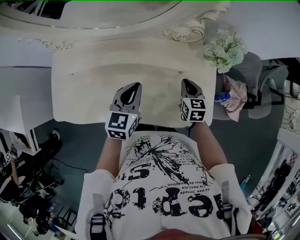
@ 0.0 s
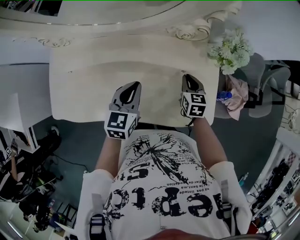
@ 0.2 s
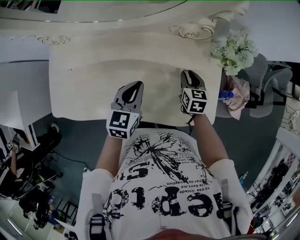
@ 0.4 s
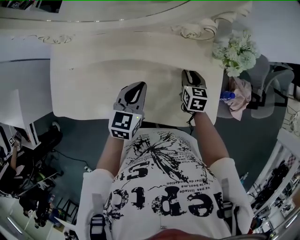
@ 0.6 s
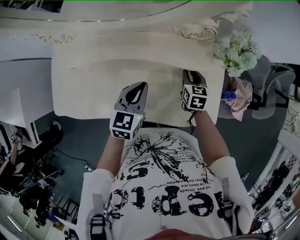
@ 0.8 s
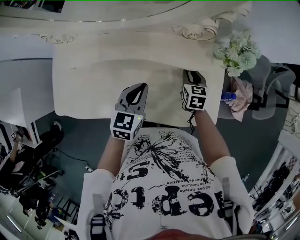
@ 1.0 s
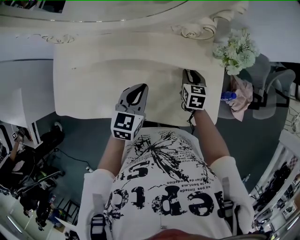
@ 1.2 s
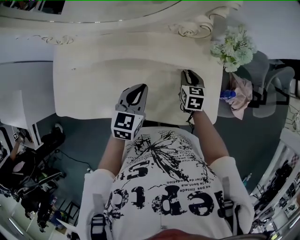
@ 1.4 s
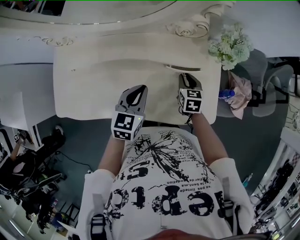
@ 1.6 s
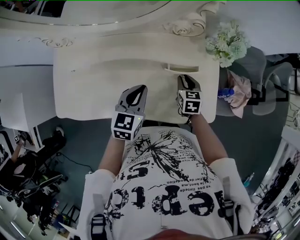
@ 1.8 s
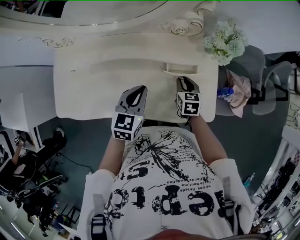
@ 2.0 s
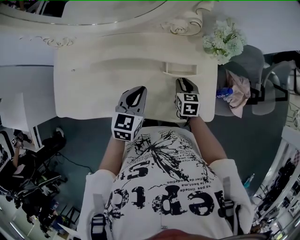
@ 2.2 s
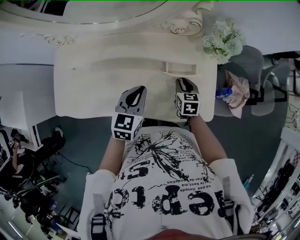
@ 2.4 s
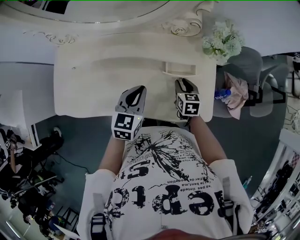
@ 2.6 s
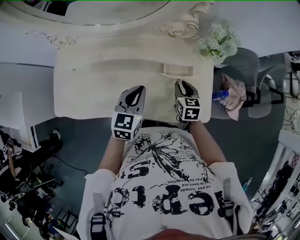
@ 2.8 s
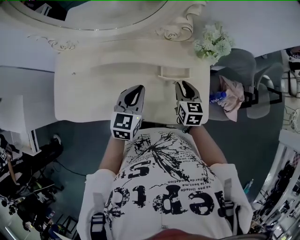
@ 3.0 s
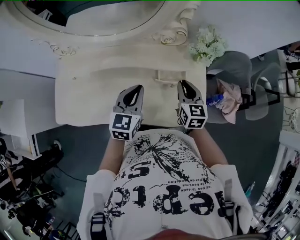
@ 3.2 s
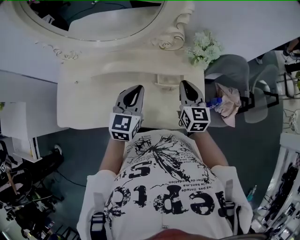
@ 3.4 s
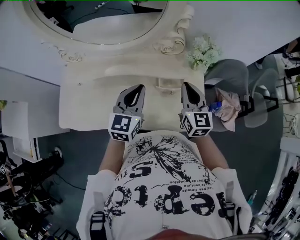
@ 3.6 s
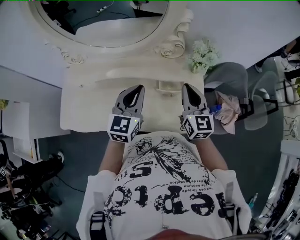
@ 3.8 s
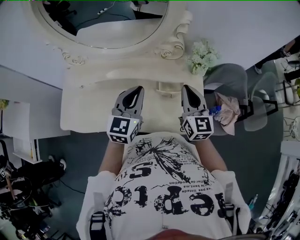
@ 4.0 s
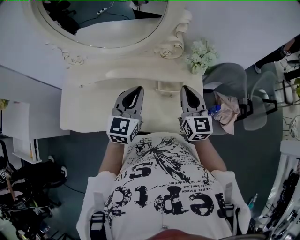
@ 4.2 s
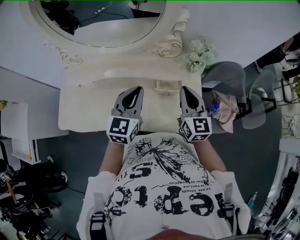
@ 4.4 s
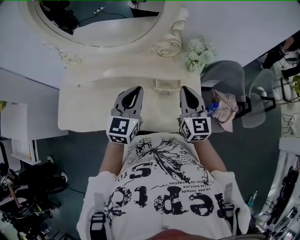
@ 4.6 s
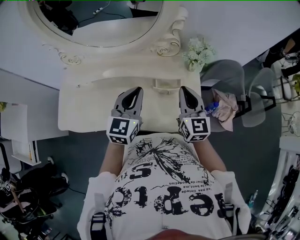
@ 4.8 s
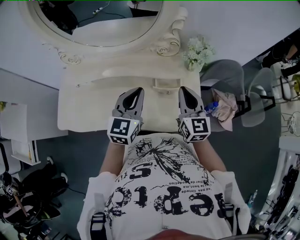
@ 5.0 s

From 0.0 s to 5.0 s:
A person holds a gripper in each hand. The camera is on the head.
From 0.0 s to 1.6 s: The grippers make only small movements.
From 1.6 s to 3.4 s: The left gripper travels upward by approximately 10 cm, while the right gripper shifts approximately 20 cm upward, and turns by about 30 degrees.
From 3.4 s to 5.0 s: The right gripper heads upward, covering some 5 cm.

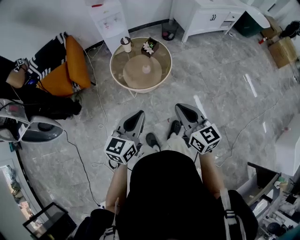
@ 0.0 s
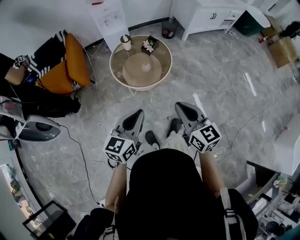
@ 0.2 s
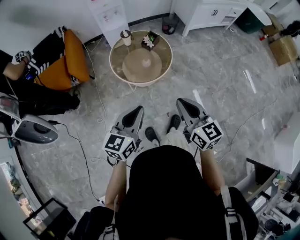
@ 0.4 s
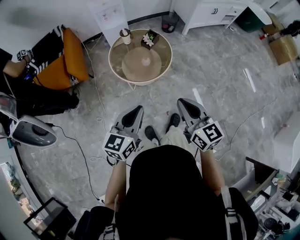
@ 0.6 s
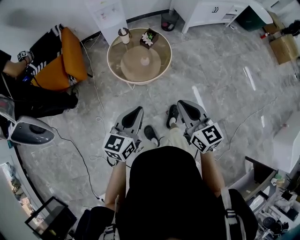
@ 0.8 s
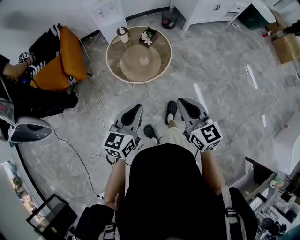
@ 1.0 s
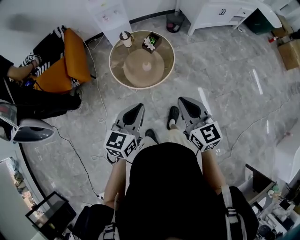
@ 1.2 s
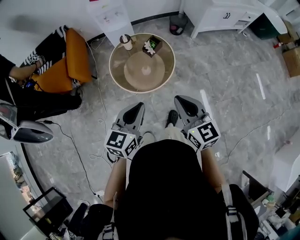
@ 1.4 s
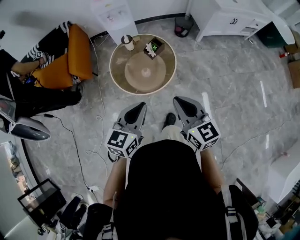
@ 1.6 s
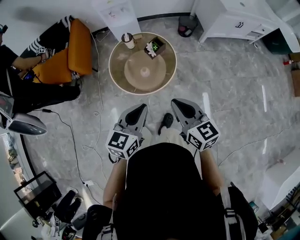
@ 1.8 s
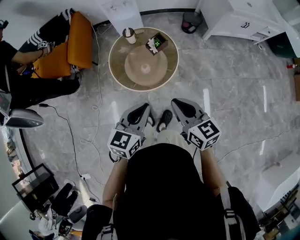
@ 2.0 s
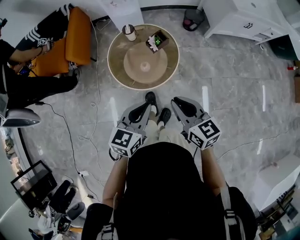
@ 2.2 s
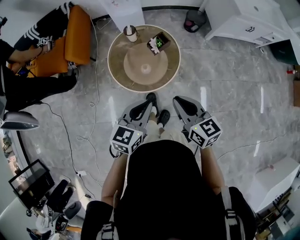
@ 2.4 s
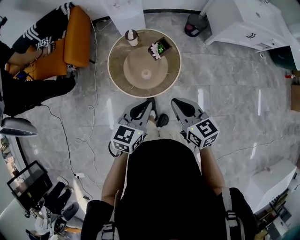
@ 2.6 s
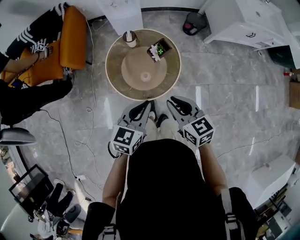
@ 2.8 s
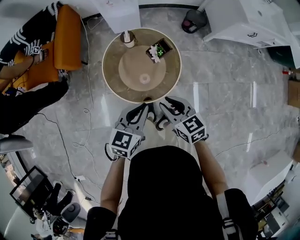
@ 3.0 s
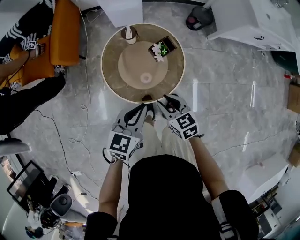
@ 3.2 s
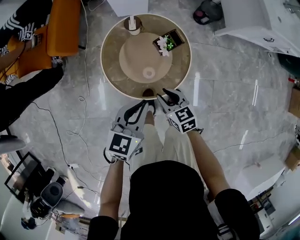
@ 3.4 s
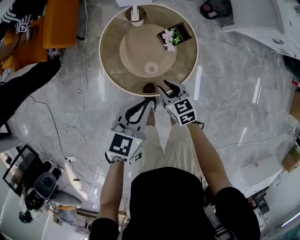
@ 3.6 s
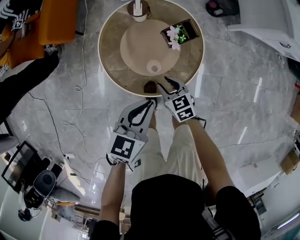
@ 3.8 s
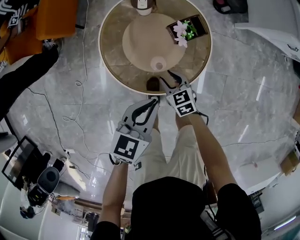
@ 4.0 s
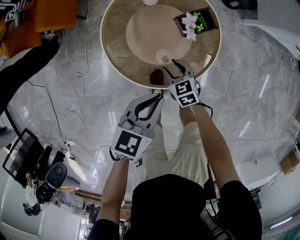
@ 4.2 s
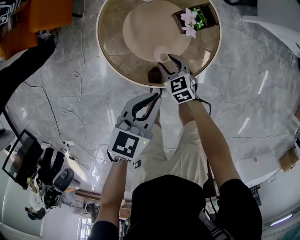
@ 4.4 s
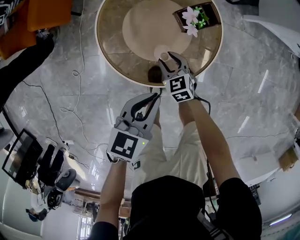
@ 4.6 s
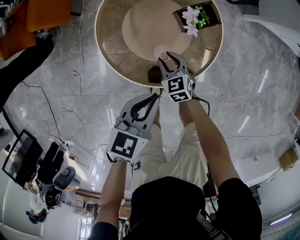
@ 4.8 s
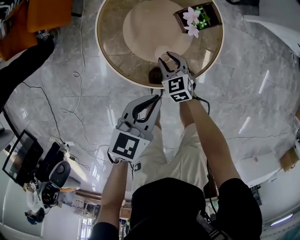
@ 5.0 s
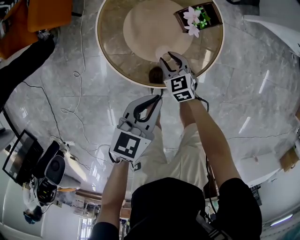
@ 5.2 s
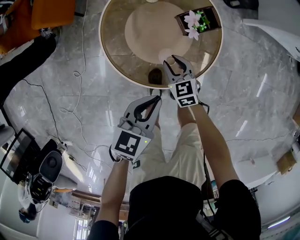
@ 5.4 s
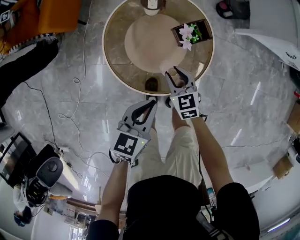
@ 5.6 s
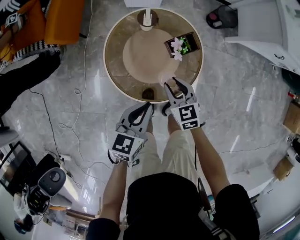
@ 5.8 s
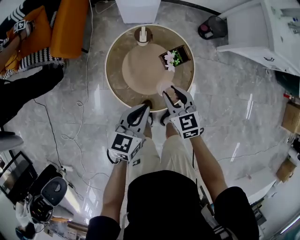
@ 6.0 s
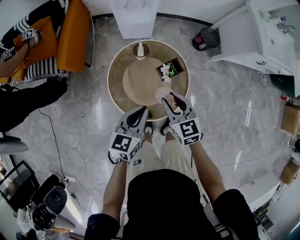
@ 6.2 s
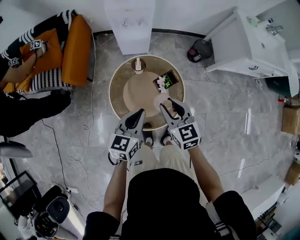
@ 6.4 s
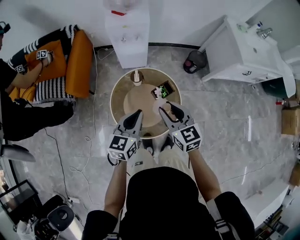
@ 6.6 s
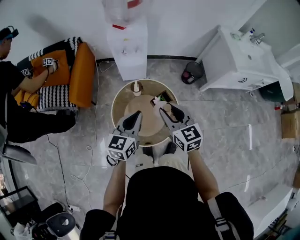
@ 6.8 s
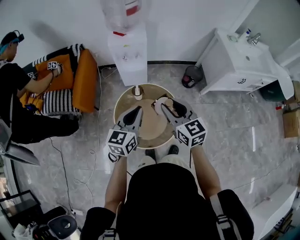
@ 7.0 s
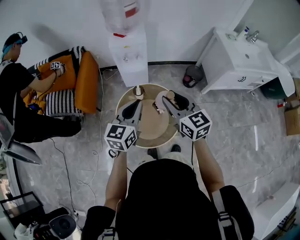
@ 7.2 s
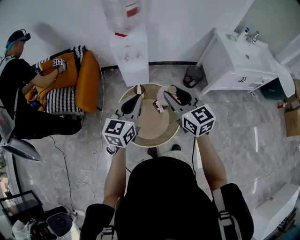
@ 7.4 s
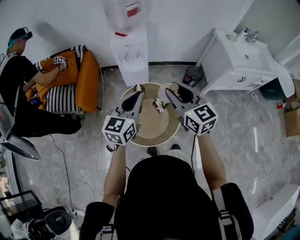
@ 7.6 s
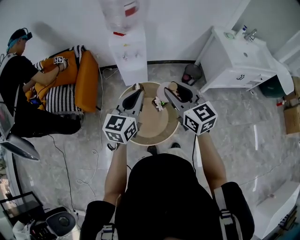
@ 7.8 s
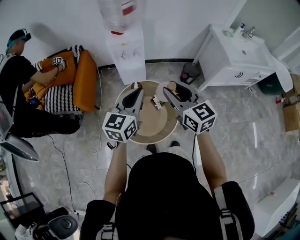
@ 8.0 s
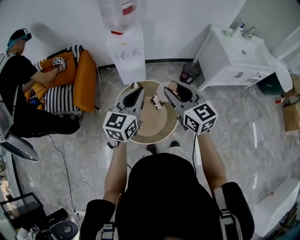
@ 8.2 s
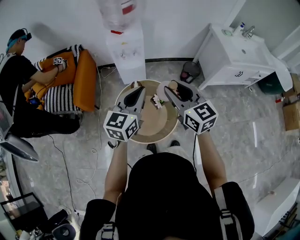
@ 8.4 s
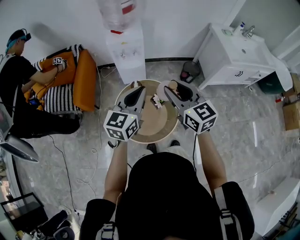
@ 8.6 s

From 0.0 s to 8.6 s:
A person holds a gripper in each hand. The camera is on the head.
From 0.0 s to 1.4 s: The left gripper travels forward and to the right by approximately 15 cm, while the right gripper travels forward by about 15 cm.
From 1.4 s to 2.8 s: The grippers both shift forward and downward by some 20 cm. The right gripper swivels approximately 30 degrees.
From 2.8 s to 4.4 s: The right gripper goes approximately 40 cm downward, rotates about 30 degrees, and opens up. Meanwhile the left gripper shifts approximately 25 cm downward.
From 4.4 s to 5.8 s: The right gripper is displaced upward by approximately 20 cm; the left gripper goes about 5 cm upward.
From 5.8 s to 7.2 s: The two grippers go approximately 35 cm upward. The left gripper changes its angle by some 30 degrees. The right gripper swivels roughly 30 degrees.
From 7.2 s to 8.6 s: The left gripper moves roughly 5 cm.

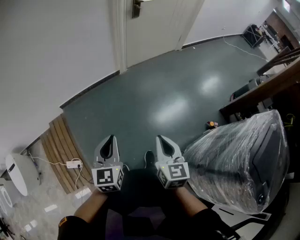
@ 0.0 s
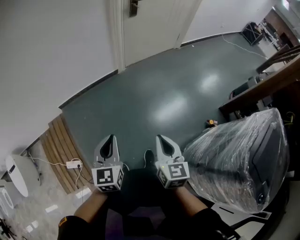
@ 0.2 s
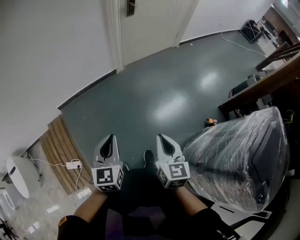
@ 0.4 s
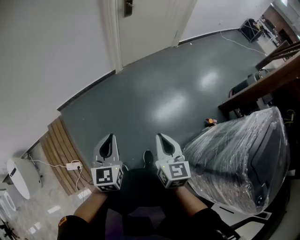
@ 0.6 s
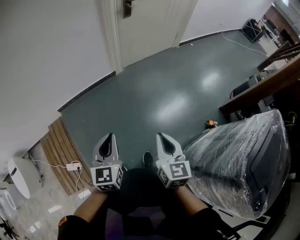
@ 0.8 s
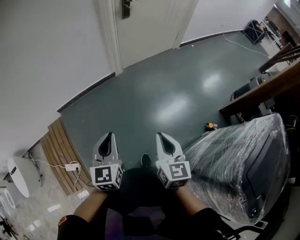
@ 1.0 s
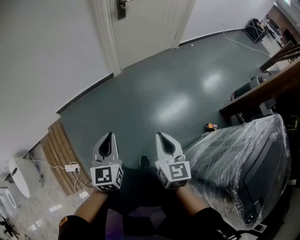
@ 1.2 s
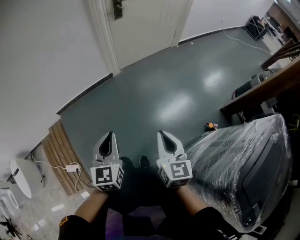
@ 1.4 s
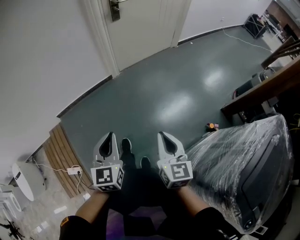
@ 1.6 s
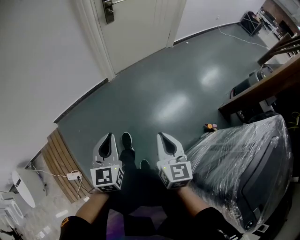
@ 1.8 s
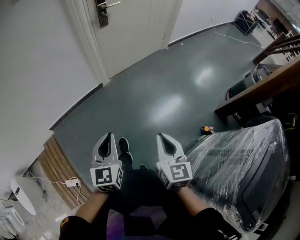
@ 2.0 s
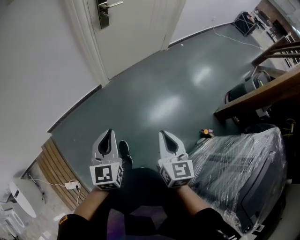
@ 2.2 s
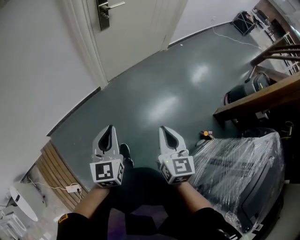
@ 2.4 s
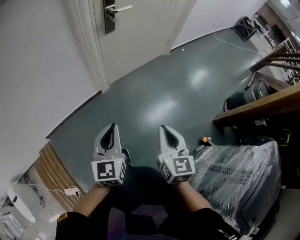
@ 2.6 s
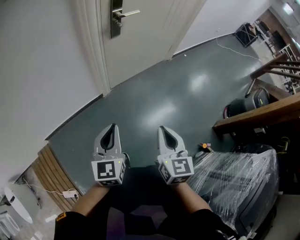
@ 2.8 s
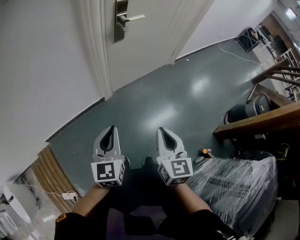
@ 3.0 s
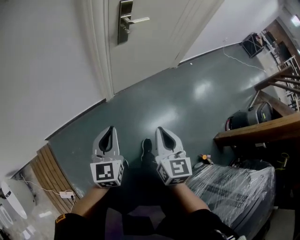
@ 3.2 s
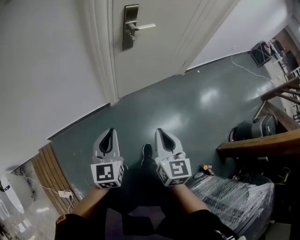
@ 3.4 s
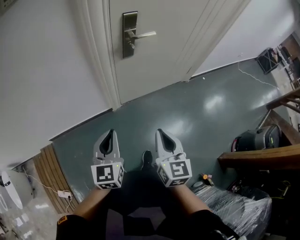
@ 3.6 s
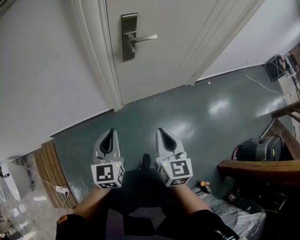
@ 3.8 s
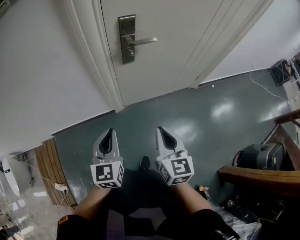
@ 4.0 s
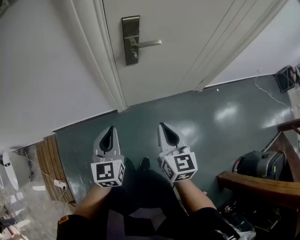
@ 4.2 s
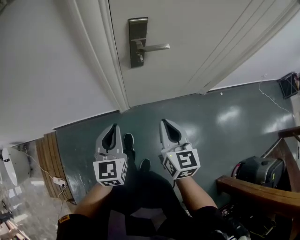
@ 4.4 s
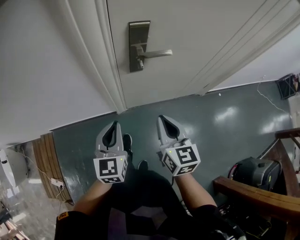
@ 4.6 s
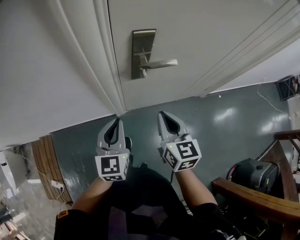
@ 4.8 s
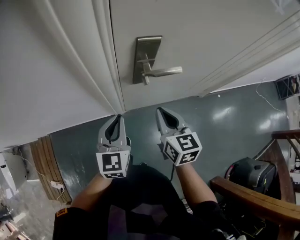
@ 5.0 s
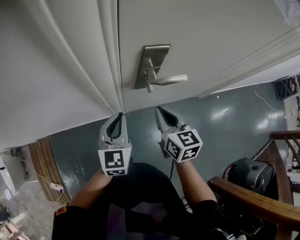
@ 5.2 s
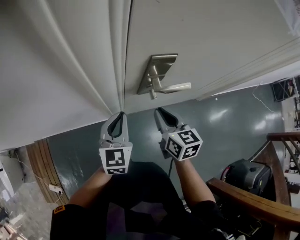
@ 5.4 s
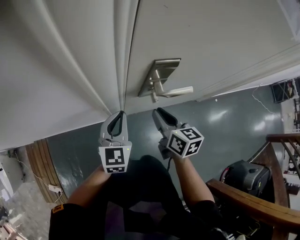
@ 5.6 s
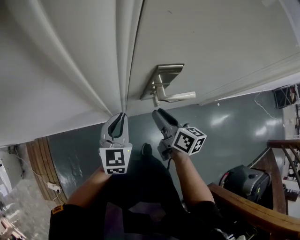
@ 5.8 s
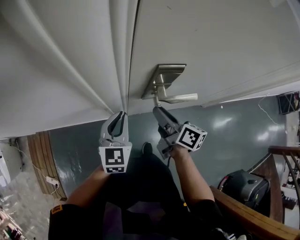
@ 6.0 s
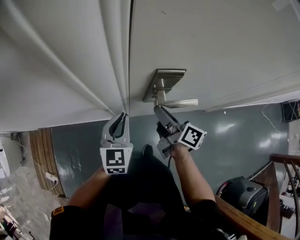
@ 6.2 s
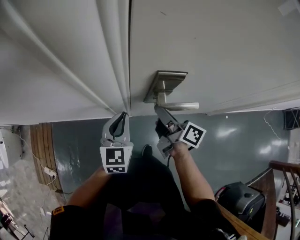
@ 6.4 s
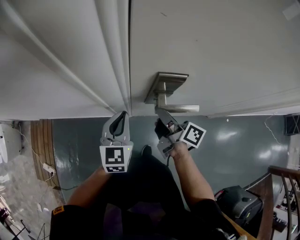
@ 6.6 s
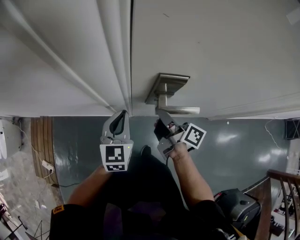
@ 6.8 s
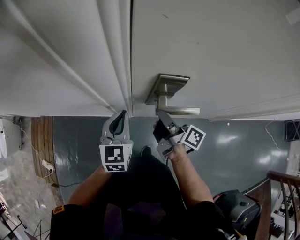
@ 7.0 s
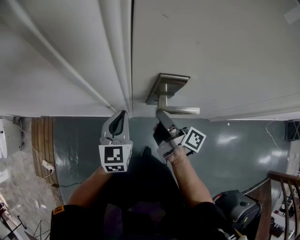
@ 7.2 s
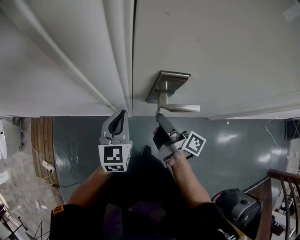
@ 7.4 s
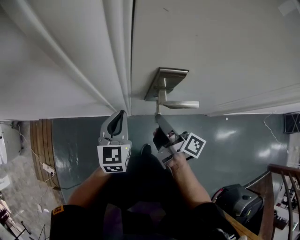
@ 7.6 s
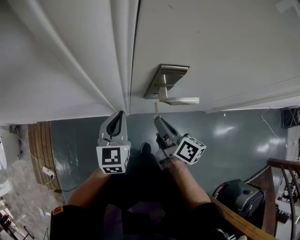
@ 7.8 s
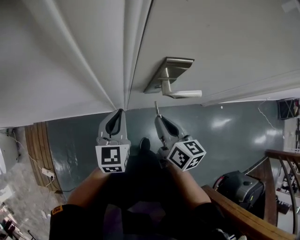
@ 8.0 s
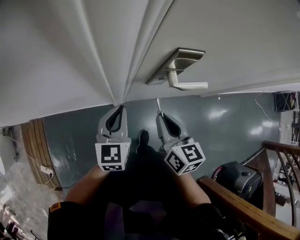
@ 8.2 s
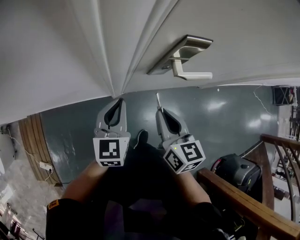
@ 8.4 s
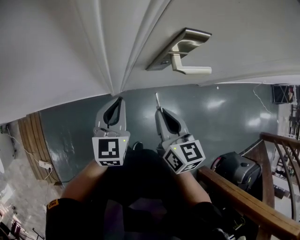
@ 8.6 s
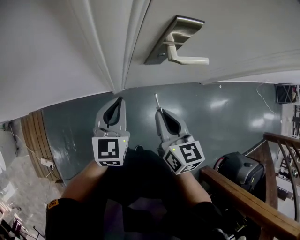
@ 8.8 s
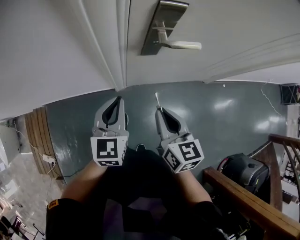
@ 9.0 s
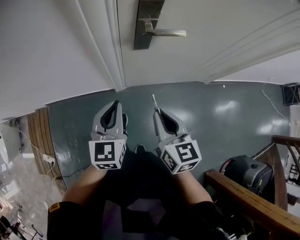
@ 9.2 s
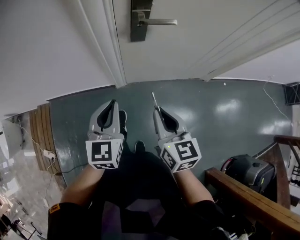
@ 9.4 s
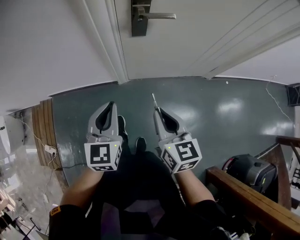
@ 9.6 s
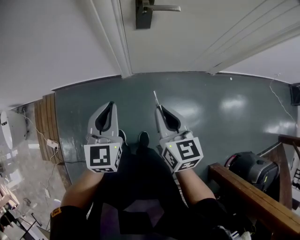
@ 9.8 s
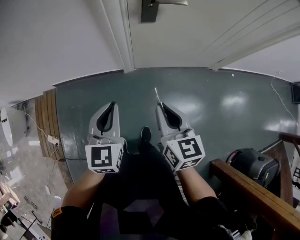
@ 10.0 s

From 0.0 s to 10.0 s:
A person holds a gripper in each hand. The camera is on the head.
From 0.0 s to 1.4 s: The grippers both shift to the right and forward by roughly 15 cm.
From 1.4 s to 2.8 s: Both grippers move forward, roughly 30 cm.
From 2.8 s to 4.2 s: Both grippers travel together forward, roughly 25 cm. The right gripper swivels roughly 30 degrees. The left gripper rotates roughly 20 degrees.
From 4.2 s to 5.8 s: The grippers both shift forward by some 30 cm. The right gripper rotates approximately 30 degrees, and opens its fingers.
From 5.8 s to 7.2 s: The right gripper changes its angle by some 40 degrees, and closes.
From 7.2 s to 8.6 s: The left gripper changes place by approximately 5 cm, while the right gripper is displaced backward and to the left by roughly 10 cm, and rolls counterclockwise, seen from behind, by approximately 60 degrees.
From 8.6 s to 10.0 s: The grippers both shift backward by roughly 25 cm.
